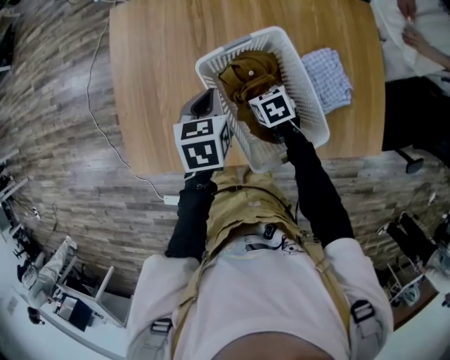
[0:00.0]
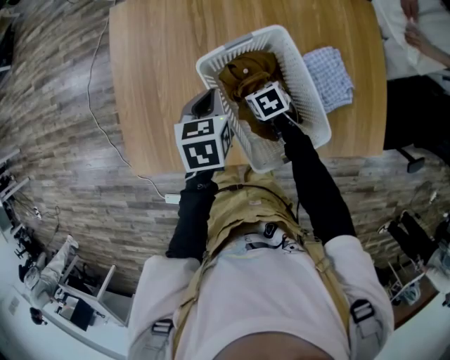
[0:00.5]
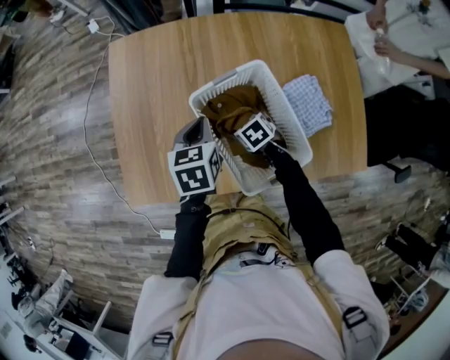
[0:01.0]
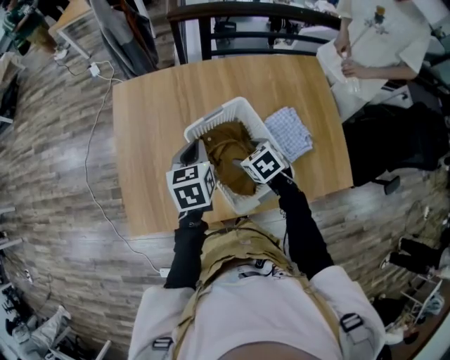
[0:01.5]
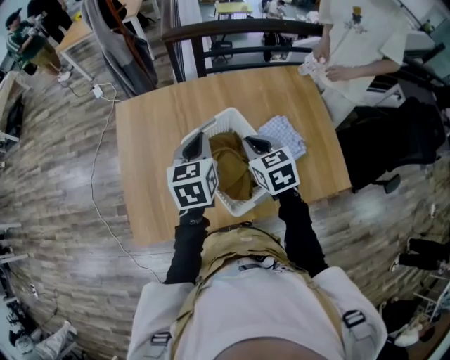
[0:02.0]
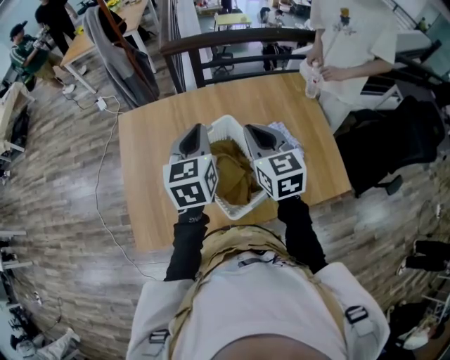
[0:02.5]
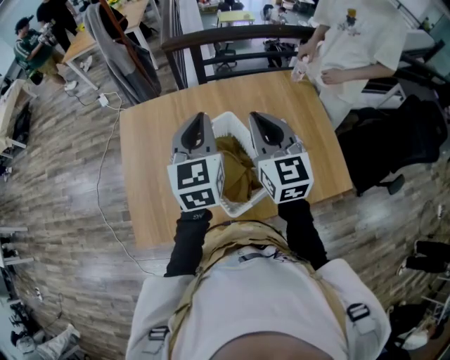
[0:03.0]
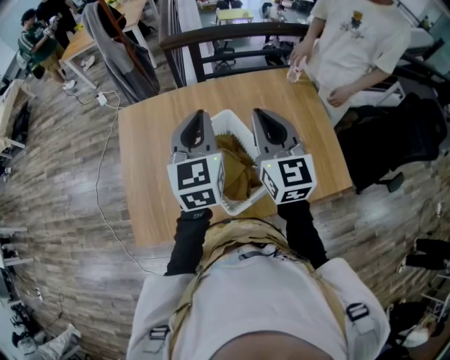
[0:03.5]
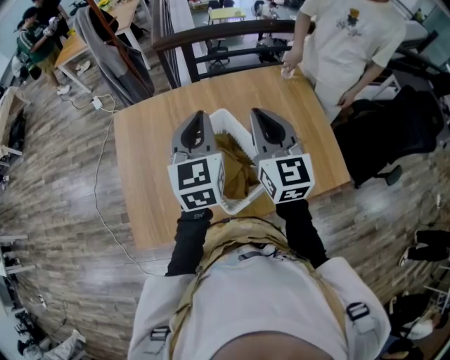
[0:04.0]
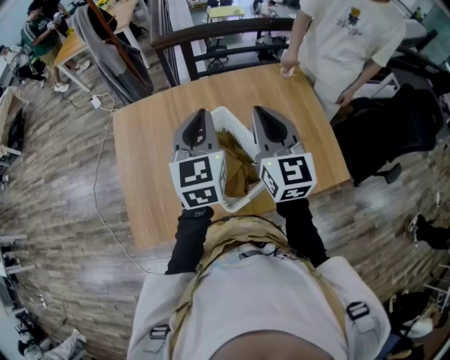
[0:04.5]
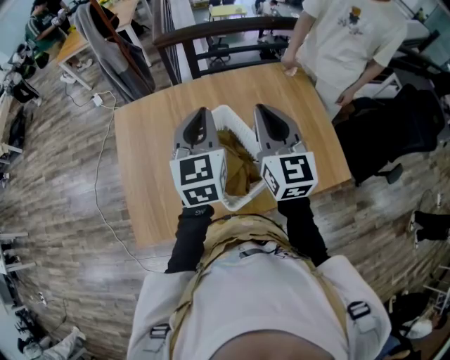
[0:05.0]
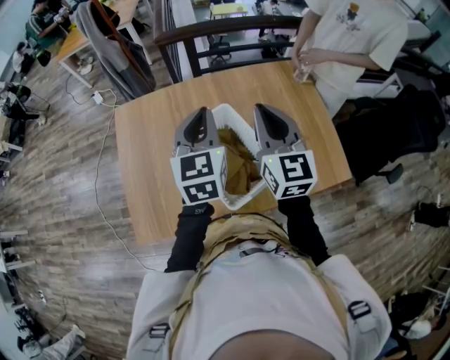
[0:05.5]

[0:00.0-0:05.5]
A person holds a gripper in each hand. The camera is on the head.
0:00.0 to 0:02.0: The right gripper goes about 25 cm upward, changes its angle by about 30 degrees, and closes. The left gripper shifts roughly 15 cm upward, and rotates approximately 20 degrees.
0:02.0 to 0:03.5: The right gripper is displaced upward by approximately 15 cm, and angles its fingers upward, by about 40 degrees; the left gripper moves upward, approximately 10 cm, and changes its angle by some 20 degrees.
0:03.5 to 0:05.5: There are only small adjustments of the grippers.

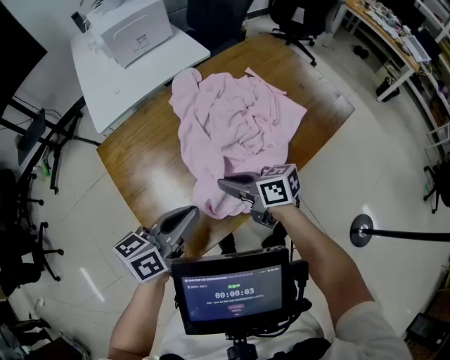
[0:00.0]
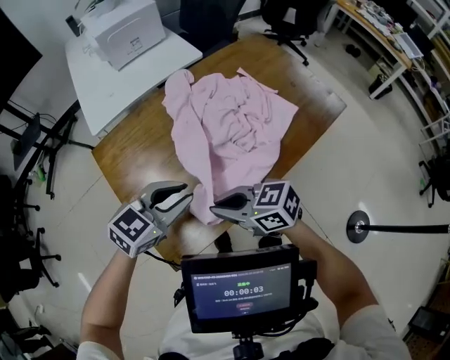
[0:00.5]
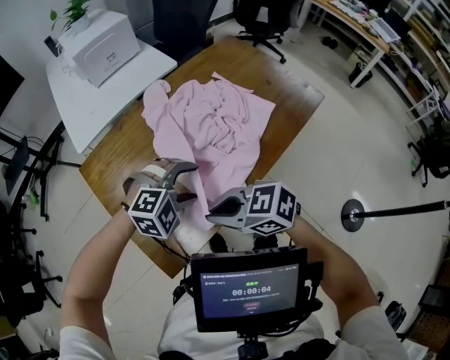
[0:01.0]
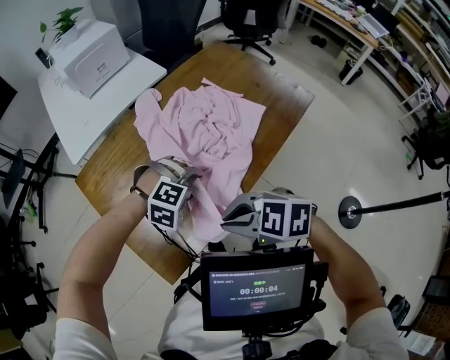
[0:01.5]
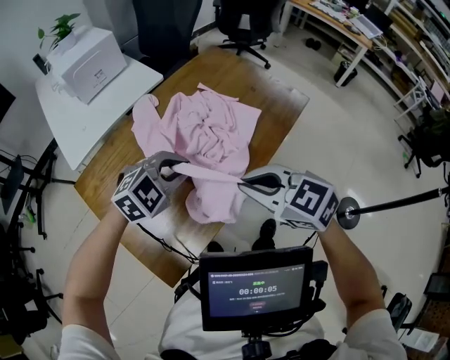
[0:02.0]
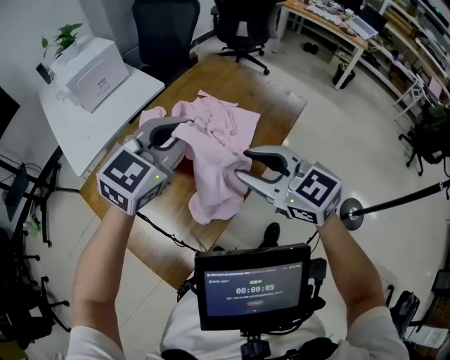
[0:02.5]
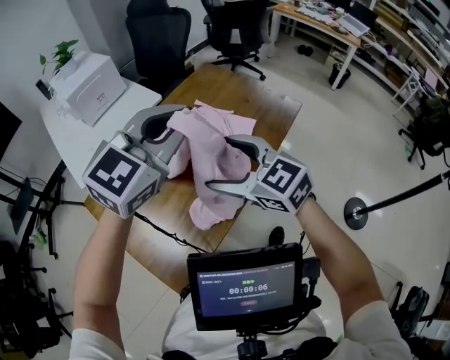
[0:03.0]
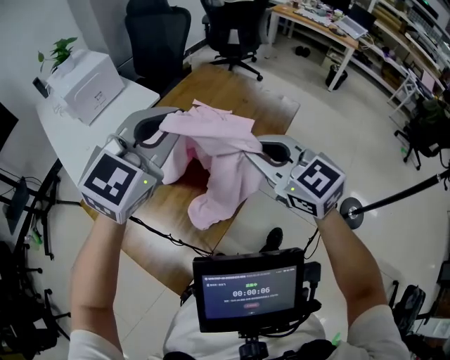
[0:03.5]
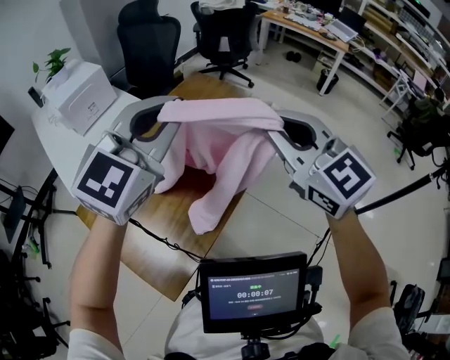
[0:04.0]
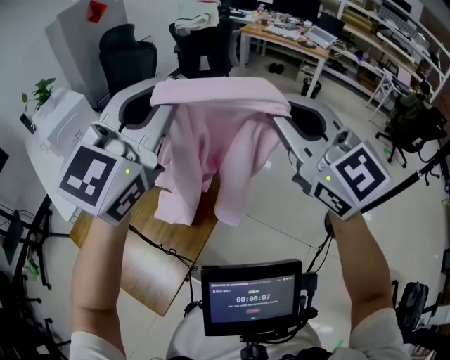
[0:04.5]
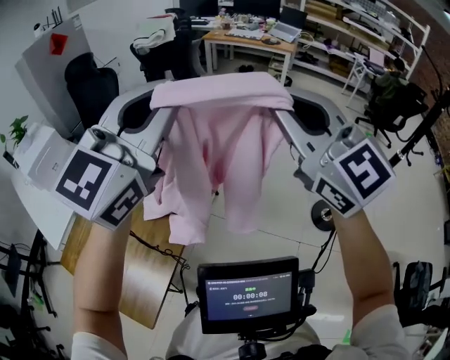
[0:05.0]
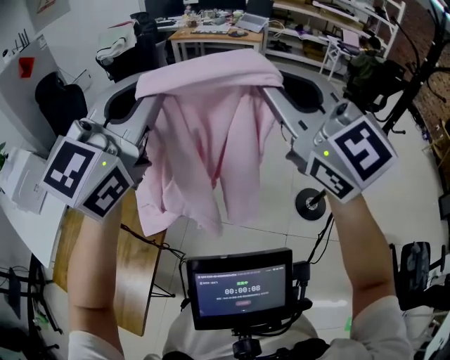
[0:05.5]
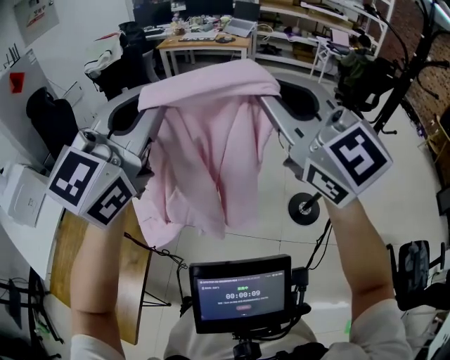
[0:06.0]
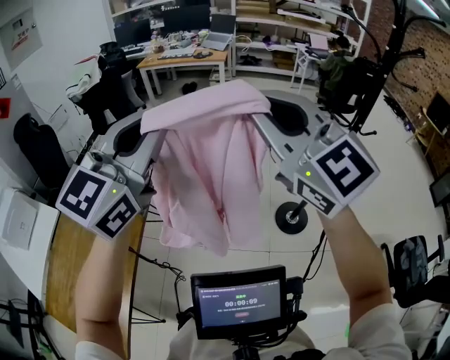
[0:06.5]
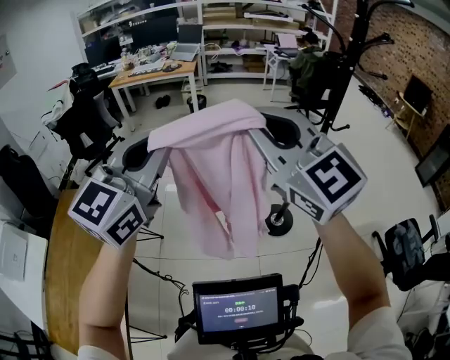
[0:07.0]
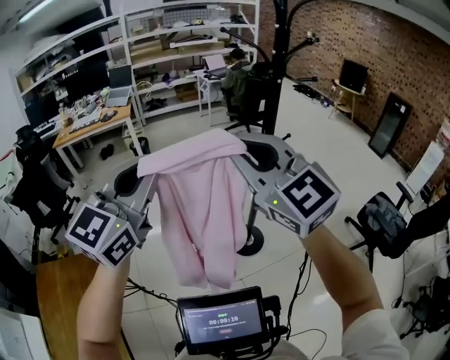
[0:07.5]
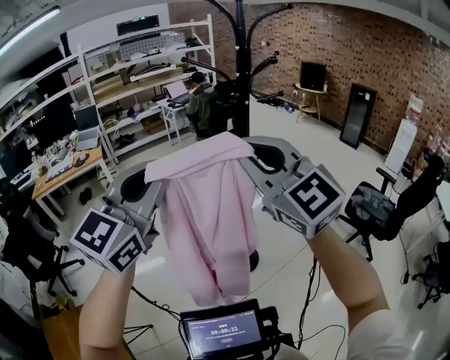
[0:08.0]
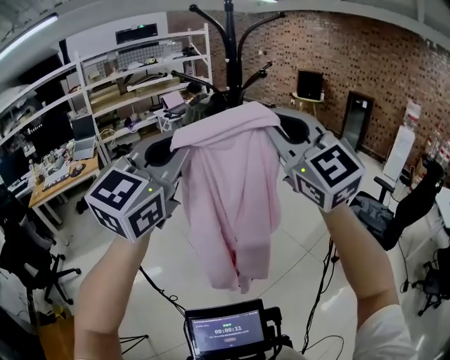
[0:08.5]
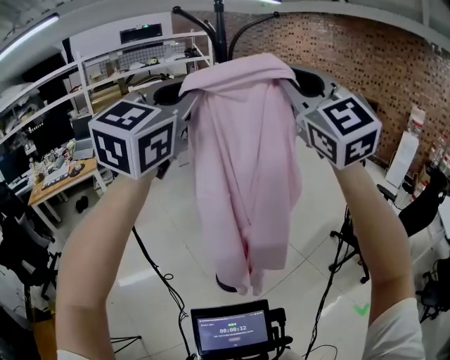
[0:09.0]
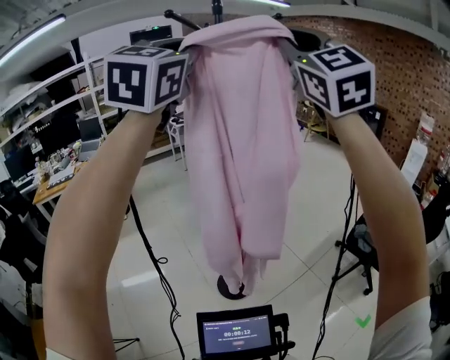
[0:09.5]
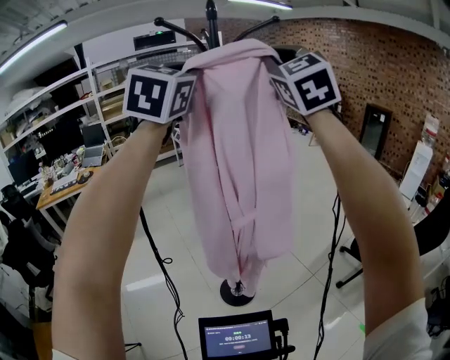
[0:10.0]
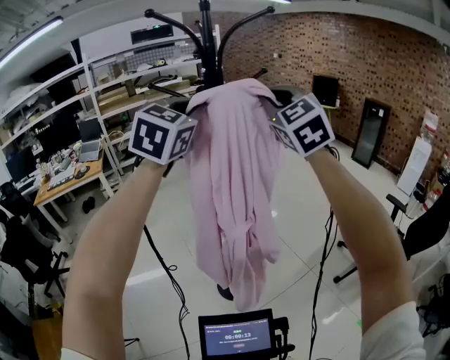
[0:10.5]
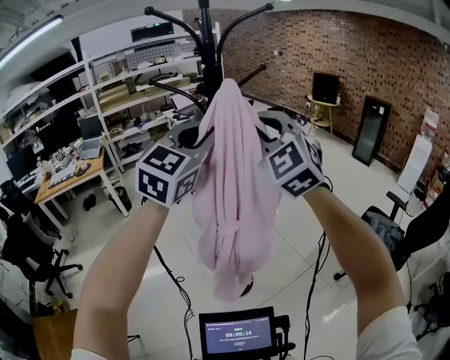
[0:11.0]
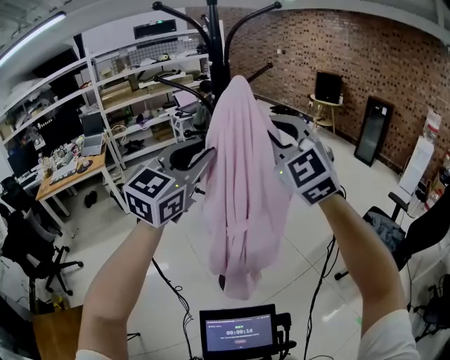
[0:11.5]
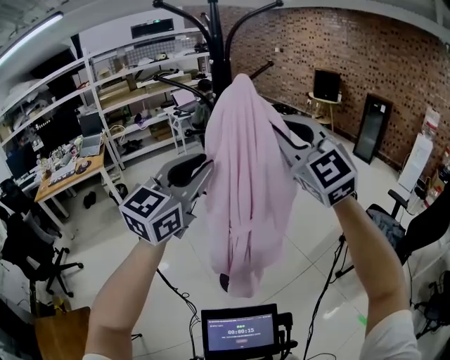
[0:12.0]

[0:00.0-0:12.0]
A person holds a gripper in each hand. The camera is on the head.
0:00.0 to 0:02.0: The right gripper moves upward, some 15 cm, and rolls counterclockwise, seen from behind, by approximately 40 degrees, while the left gripper moves some 10 cm downward and comes back, twists roughly 80 degrees clockwise, seen from behind, and opens, then closes once more.
0:02.0 to 0:04.0: The right gripper is displaced upward and to the right by roughly 20 cm, turns by roughly 40 degrees, and opens, then closes again. Meanwhile the left gripper shifts about 30 cm upward, and tips its fingers upward by about 40 degrees.
0:04.0 to 0:06.0: The left gripper shifts some 40 cm to the right, and changes its angle by about 30 degrees. Meanwhile the right gripper moves to the right and upward, some 40 cm, and swivels approximately 30 degrees.
0:06.0 to 0:08.0: The left gripper ends up approximately 35 cm from where it was, and turns by roughly 40 degrees, while the right gripper ends up approximately 30 cm from where it was, and changes its angle by approximately 40 degrees.
0:08.0 to 0:10.0: The grippers both shift forward, upward and to the right by some 40 cm. The left gripper changes its angle by about 20 degrees. The right gripper changes its angle by approximately 30 degrees.
0:10.0 to 0:12.0: Both grippers move downward and backward, approximately 20 cm. The left gripper turns by roughly 30 degrees.

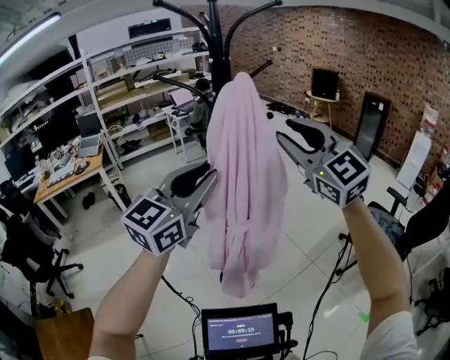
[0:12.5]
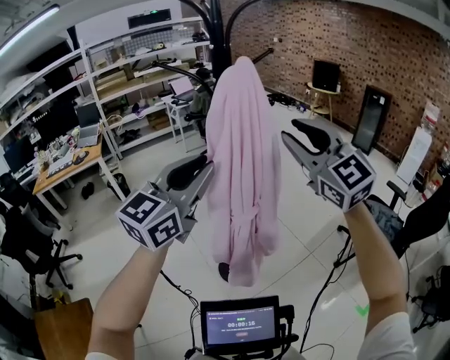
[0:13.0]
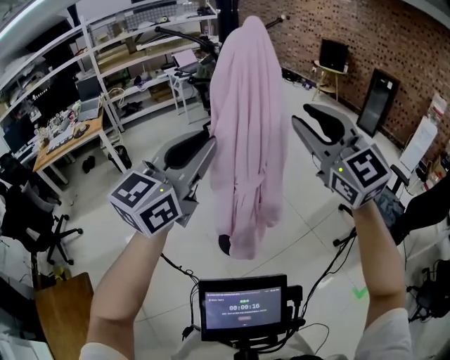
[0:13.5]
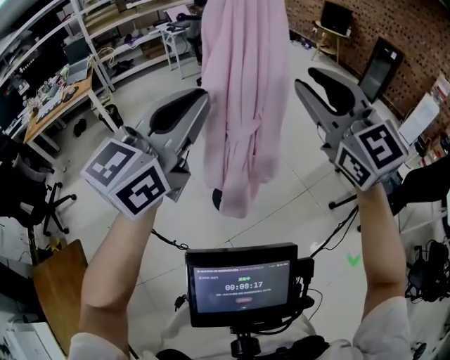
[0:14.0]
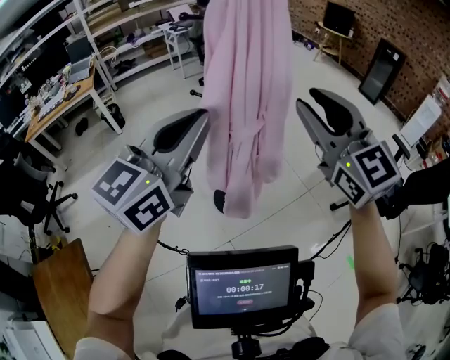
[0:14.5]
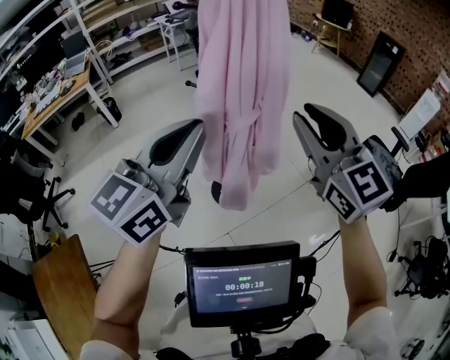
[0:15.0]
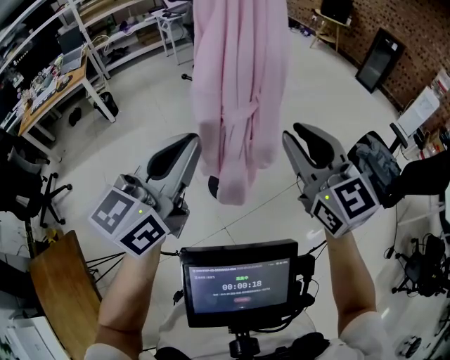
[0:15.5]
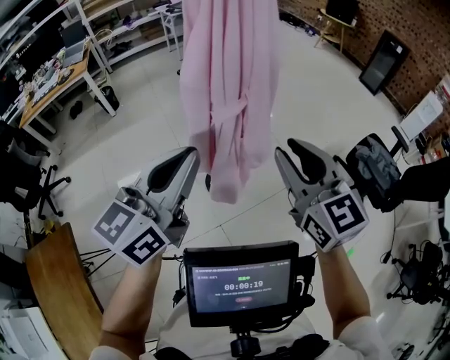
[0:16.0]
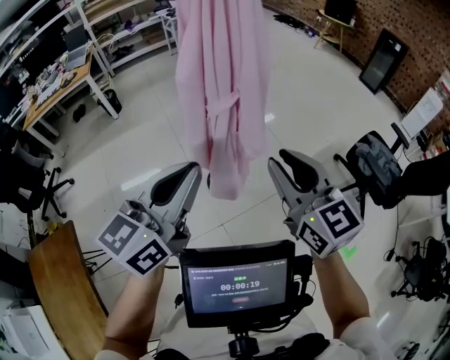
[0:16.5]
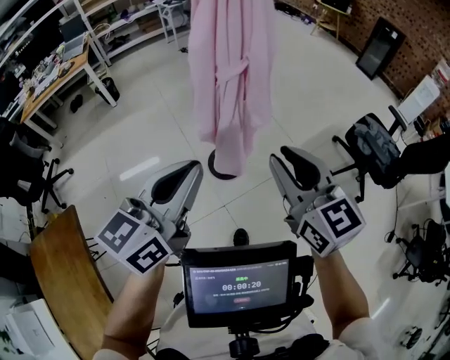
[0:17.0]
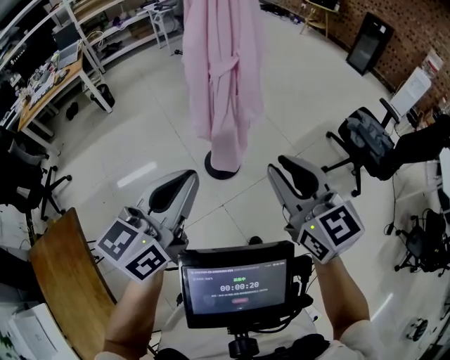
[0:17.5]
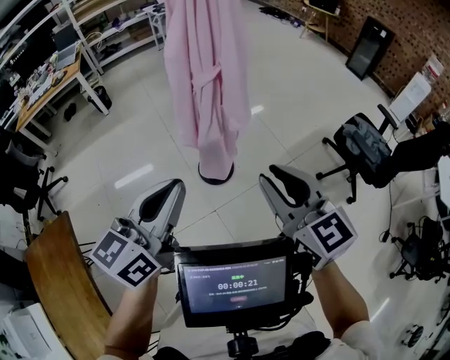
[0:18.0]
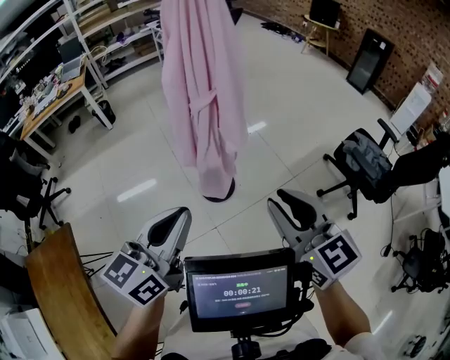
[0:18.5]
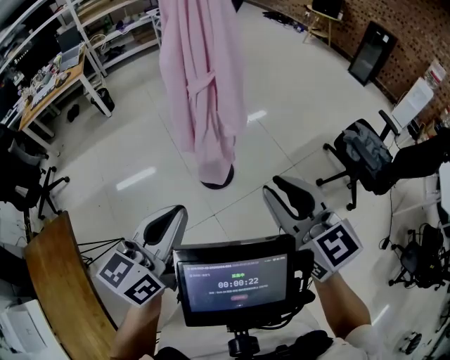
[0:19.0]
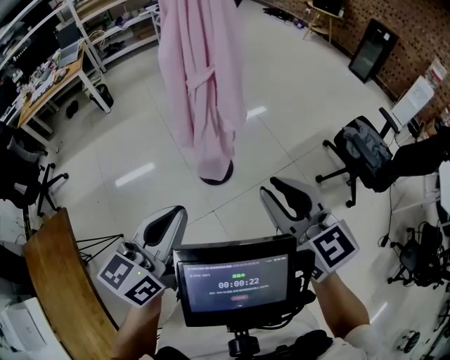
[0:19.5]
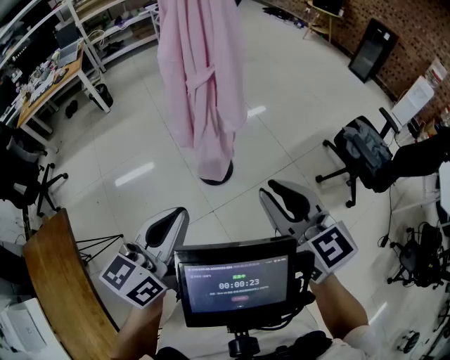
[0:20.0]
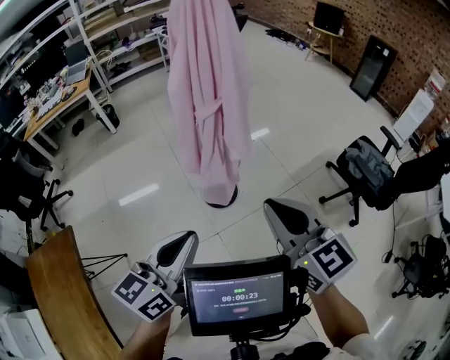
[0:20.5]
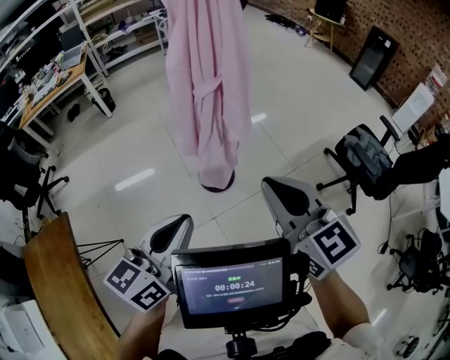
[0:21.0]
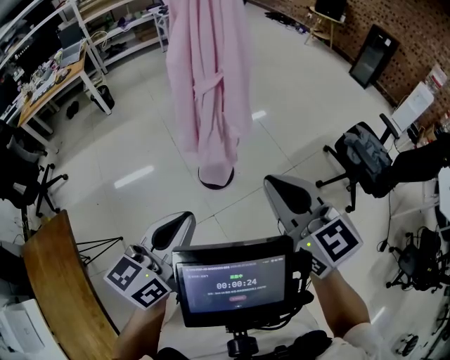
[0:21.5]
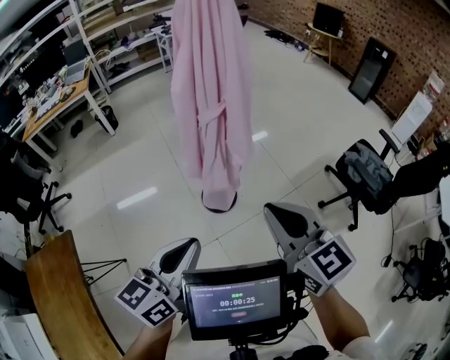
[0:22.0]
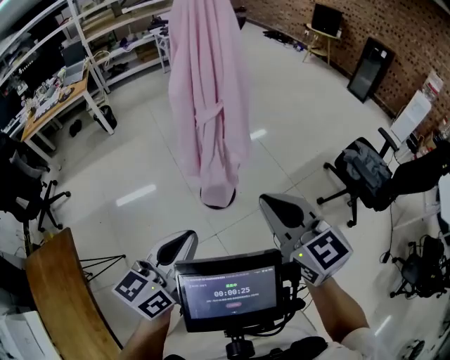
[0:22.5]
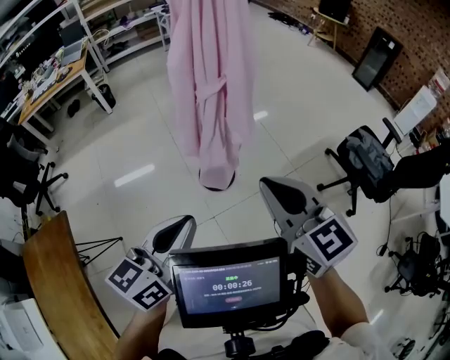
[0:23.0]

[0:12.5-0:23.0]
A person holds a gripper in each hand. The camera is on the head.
0:12.5 to 0:14.5: The right gripper goes some 15 cm downward and backward; the left gripper travels backward and downward by some 10 cm.
0:14.5 to 0:16.5: The two grippers go about 15 cm downward and backward. The right gripper rotates some 20 degrees.
0:16.5 to 0:19.0: The right gripper travels backward by approximately 10 cm. Meanwhile the left gripper goes roughly 15 cm backward and downward.
0:19.0 to 0:23.0: The grippers move only a little.
